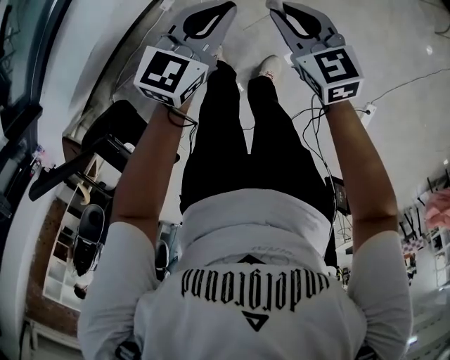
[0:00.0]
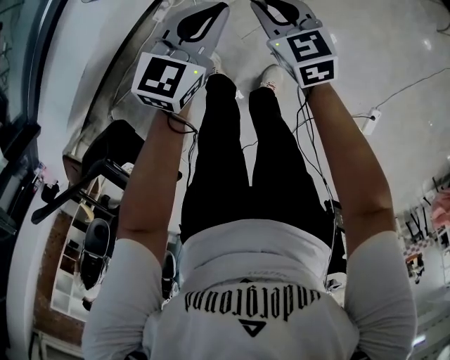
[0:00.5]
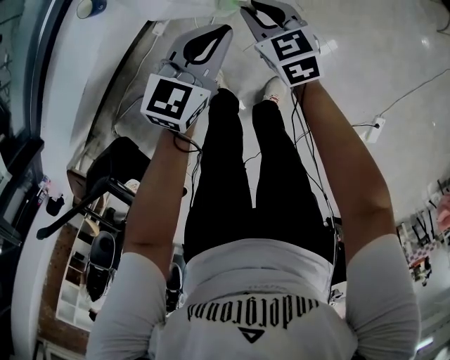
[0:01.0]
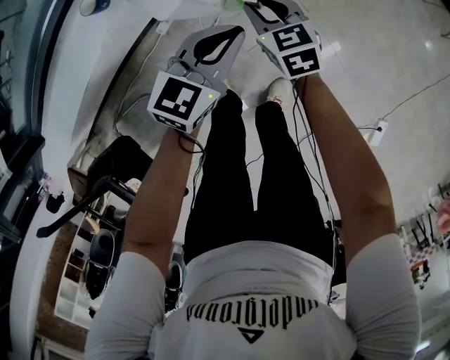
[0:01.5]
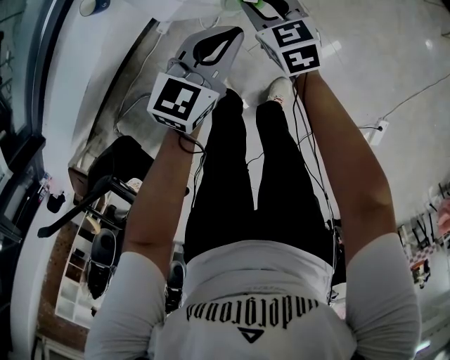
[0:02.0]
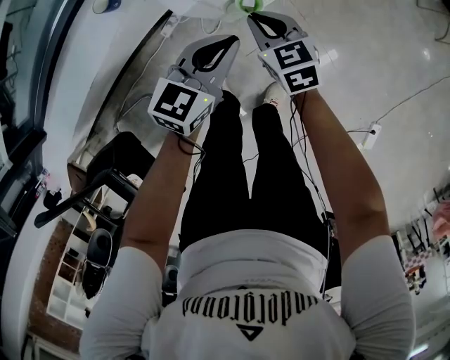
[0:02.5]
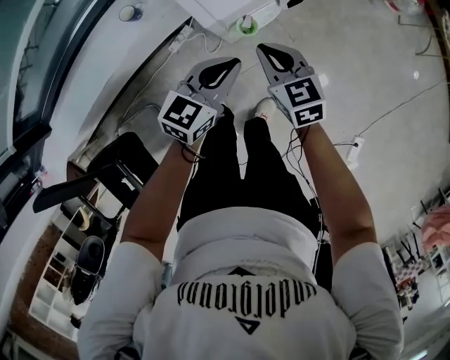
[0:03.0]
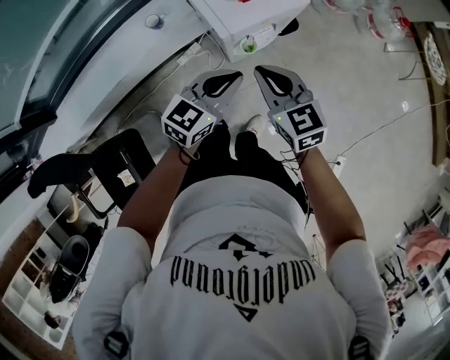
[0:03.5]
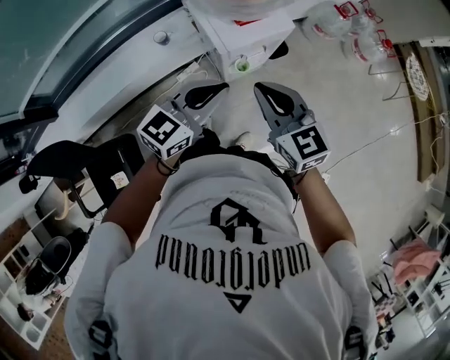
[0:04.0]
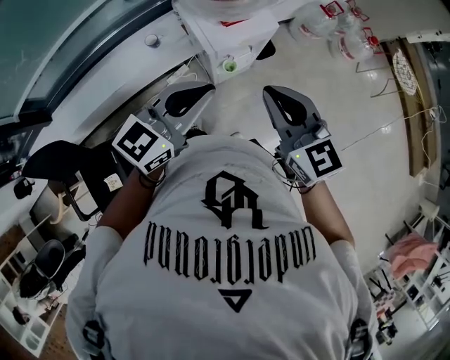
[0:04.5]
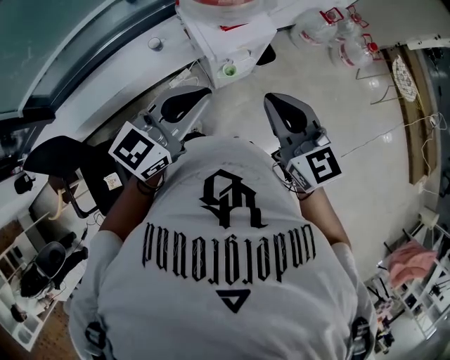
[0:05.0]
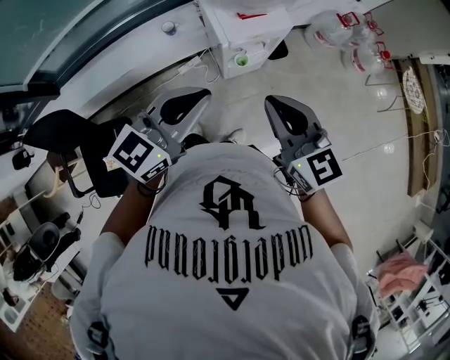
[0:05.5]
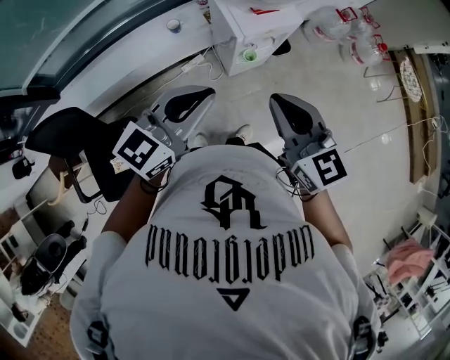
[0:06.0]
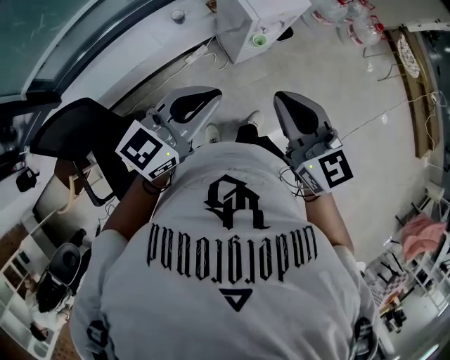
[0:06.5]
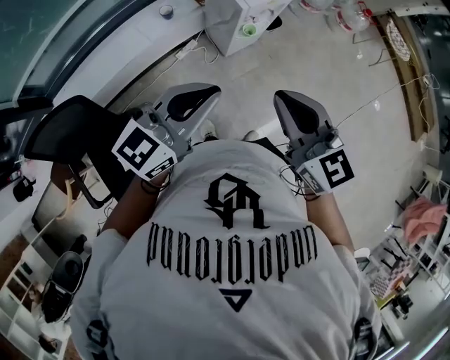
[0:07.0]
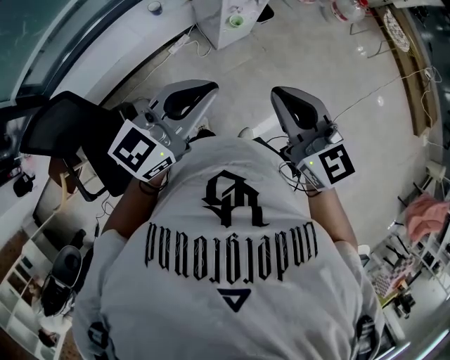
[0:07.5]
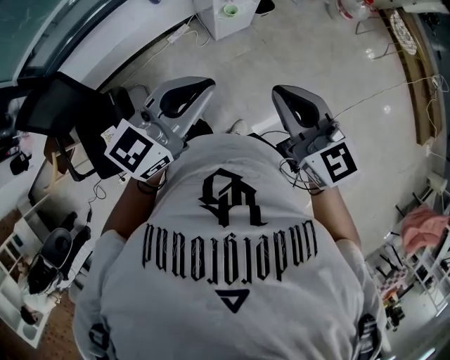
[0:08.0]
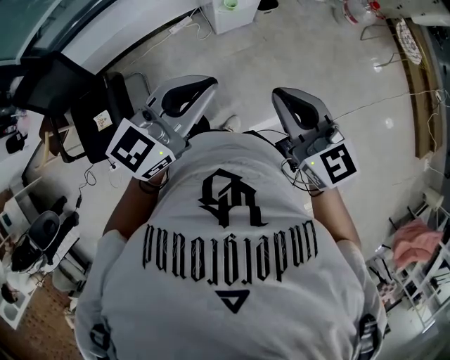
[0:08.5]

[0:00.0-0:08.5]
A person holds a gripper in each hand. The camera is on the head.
0:00.0 to 0:02.0: The right gripper moves downward and forward, about 20 cm. The left gripper shifts about 10 cm downward.
0:02.0 to 0:04.0: The grippers both shift upward by roughly 50 cm. The right gripper turns by approximately 20 degrees, and closes.
0:04.0 to 0:06.5: The grippers both shift backward, to the left and upward by some 30 cm.
0:06.5 to 0:08.5: Both grippers travel together to the right and backward, about 30 cm.

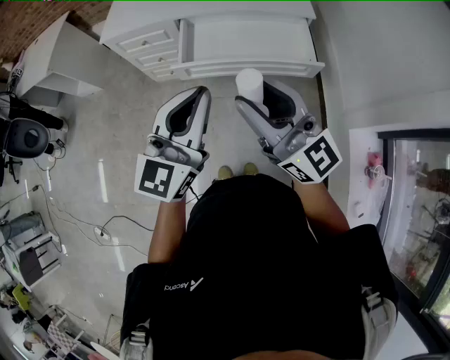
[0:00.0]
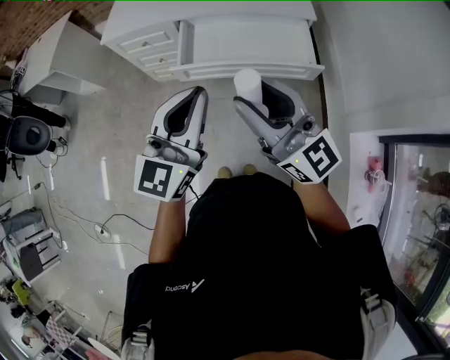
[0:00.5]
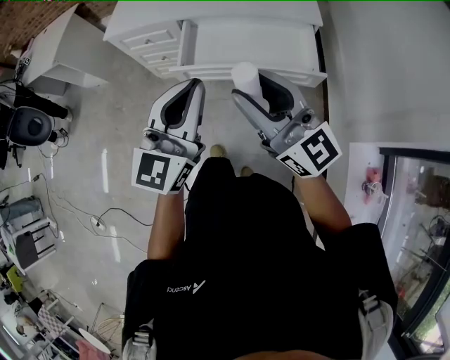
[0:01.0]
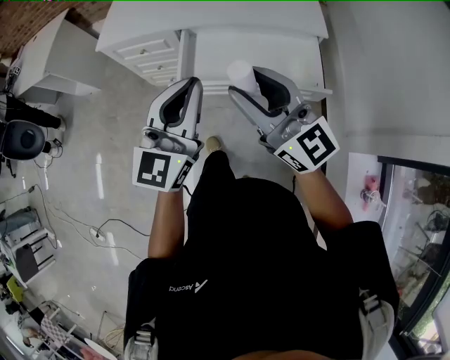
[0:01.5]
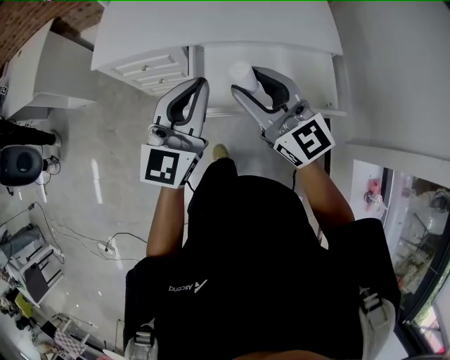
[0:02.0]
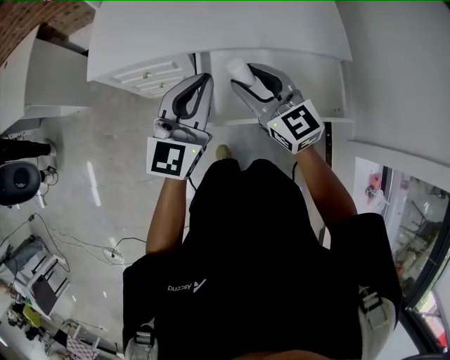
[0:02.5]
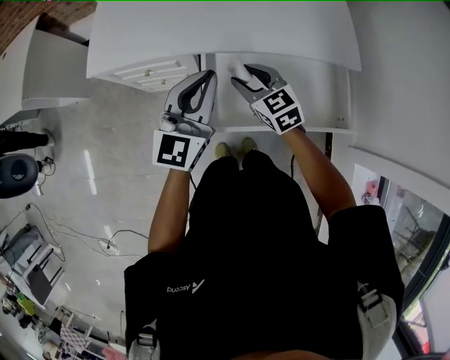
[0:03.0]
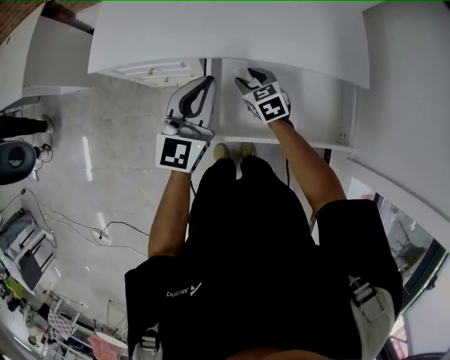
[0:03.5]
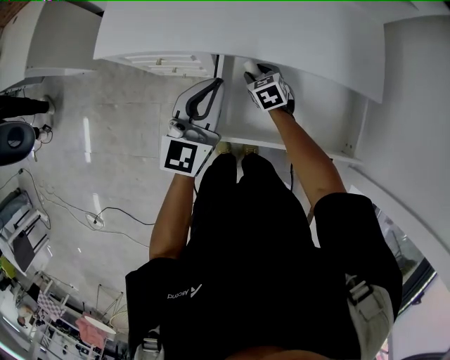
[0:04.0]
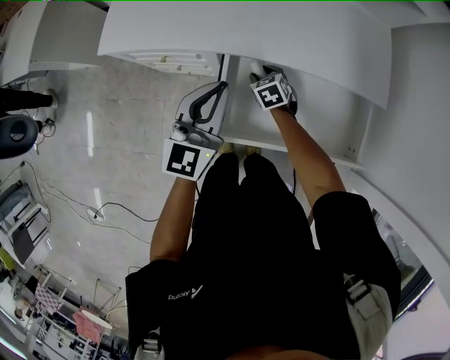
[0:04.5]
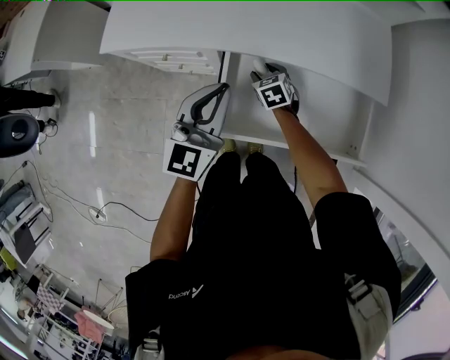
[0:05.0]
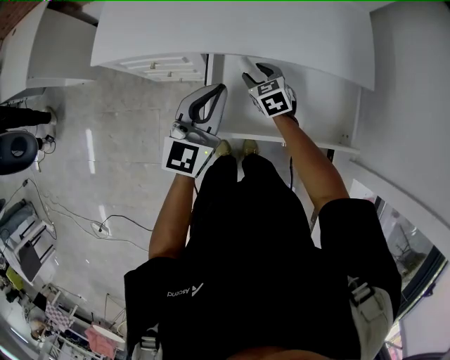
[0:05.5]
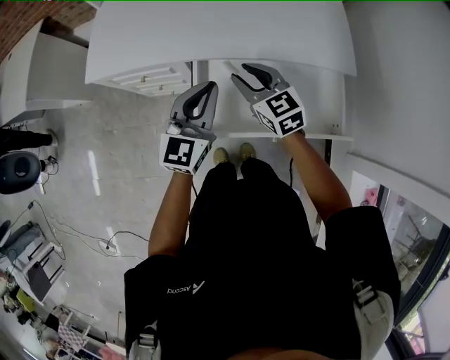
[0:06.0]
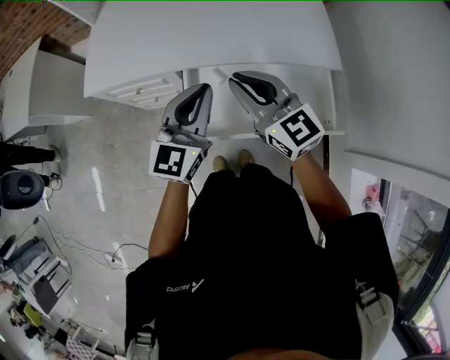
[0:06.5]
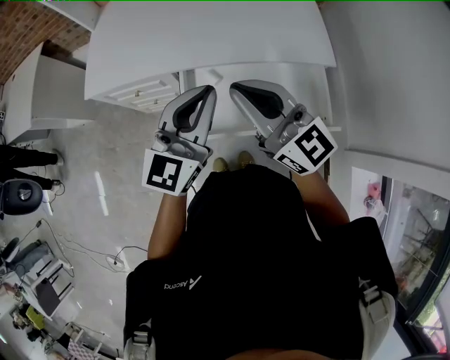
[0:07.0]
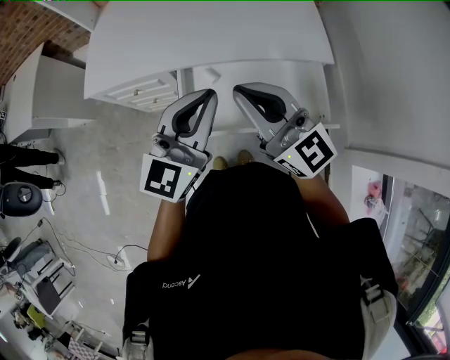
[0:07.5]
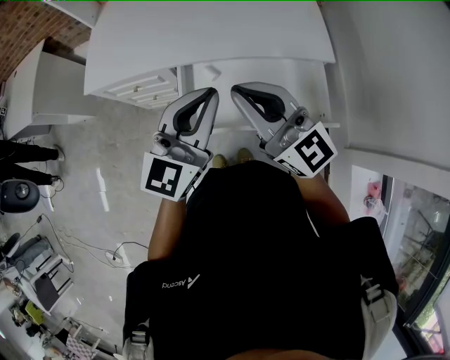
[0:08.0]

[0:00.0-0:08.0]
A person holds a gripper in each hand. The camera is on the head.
0:00.0 to 0:02.0: The two grippers go approximately 30 cm forward.
0:02.0 to 0:04.0: The left gripper goes roughly 20 cm forward and downward. The right gripper travels downward and forward by approximately 40 cm, and tilts its fingers approximately 60 degrees downward.
0:04.0 to 0:06.0: The left gripper shifts roughly 5 cm to the right; the right gripper shifts some 20 cm upward, and angles its fingers upward, by approximately 30 degrees.
0:06.0 to 0:08.0: The left gripper is displaced upward, backward and to the right by roughly 15 cm. The right gripper shifts about 25 cm upward and backward, tips its fingers upward by approximately 30 degrees, and closes.

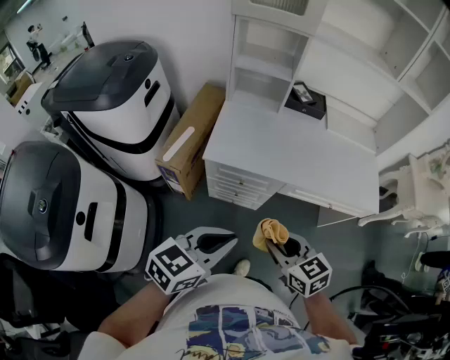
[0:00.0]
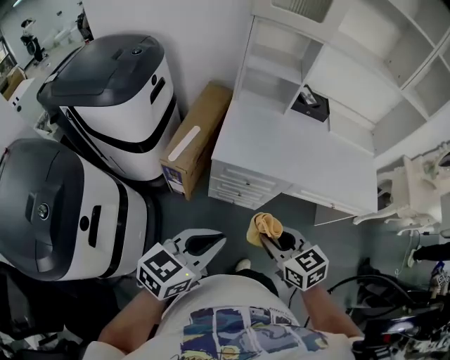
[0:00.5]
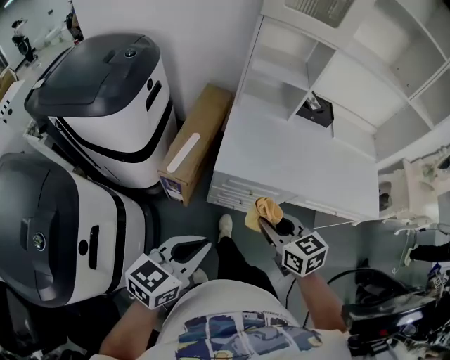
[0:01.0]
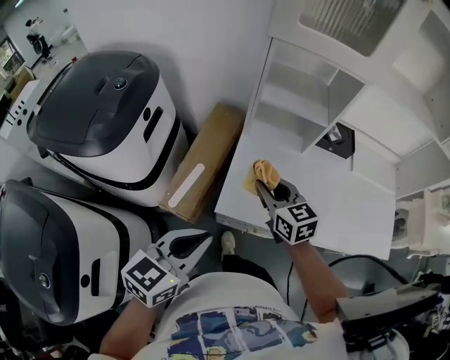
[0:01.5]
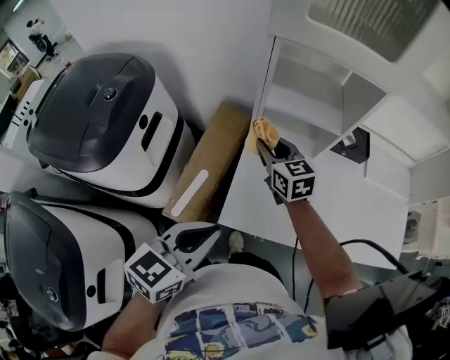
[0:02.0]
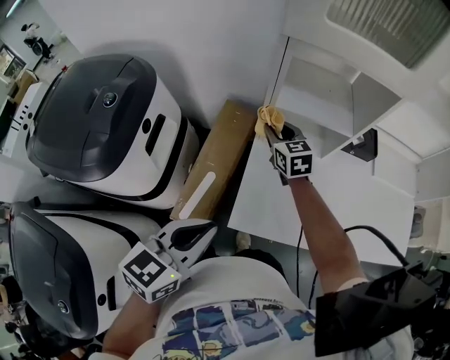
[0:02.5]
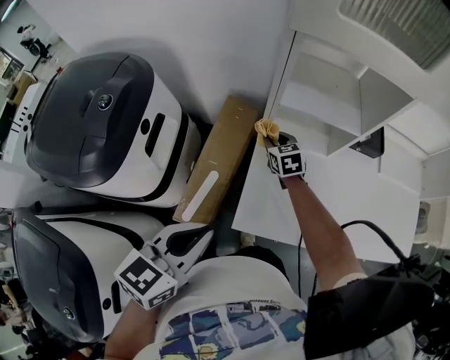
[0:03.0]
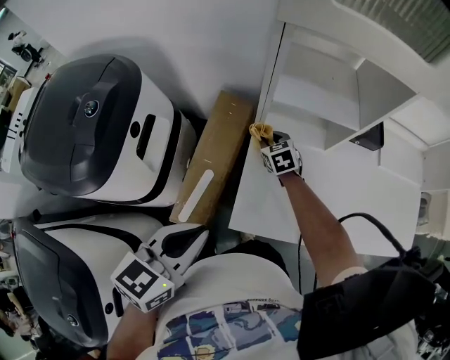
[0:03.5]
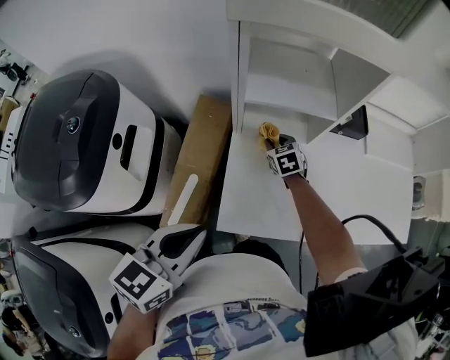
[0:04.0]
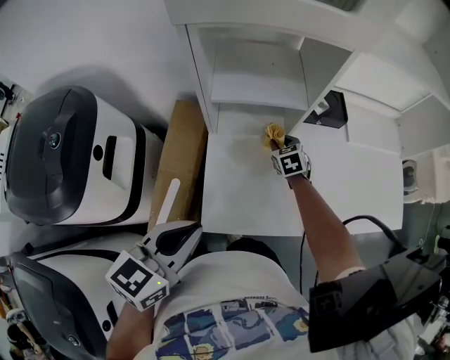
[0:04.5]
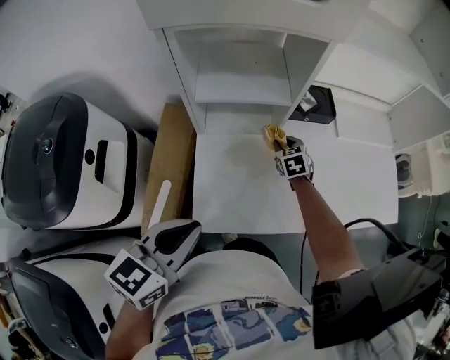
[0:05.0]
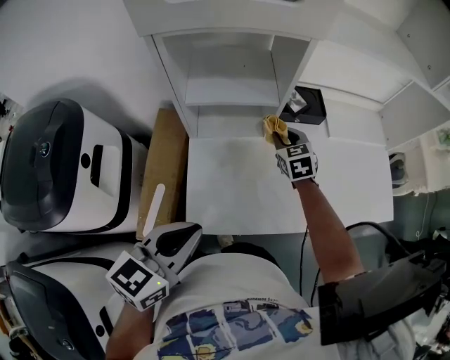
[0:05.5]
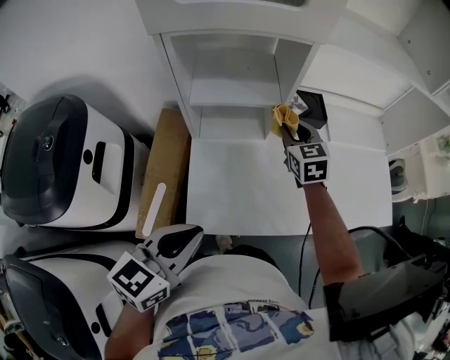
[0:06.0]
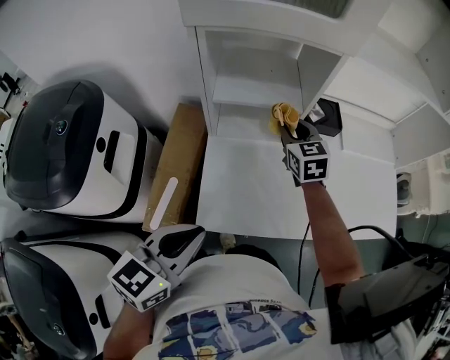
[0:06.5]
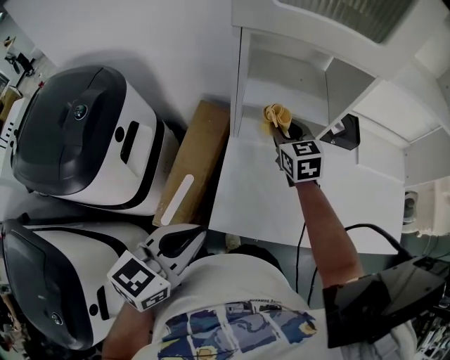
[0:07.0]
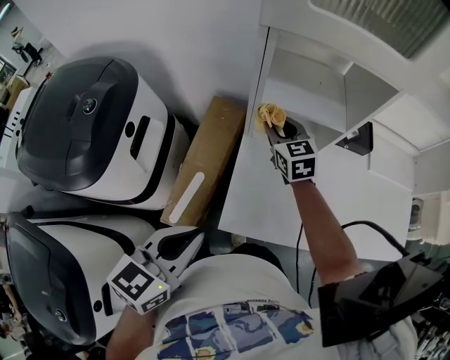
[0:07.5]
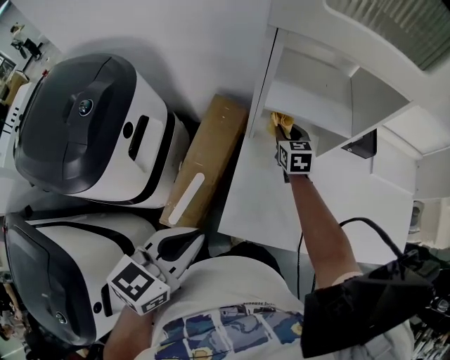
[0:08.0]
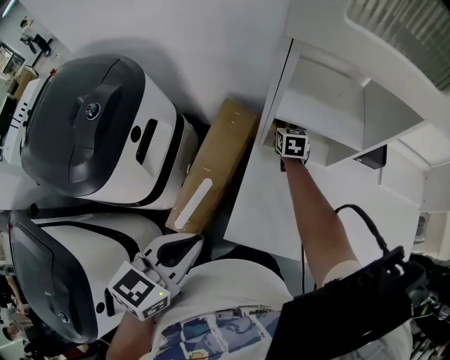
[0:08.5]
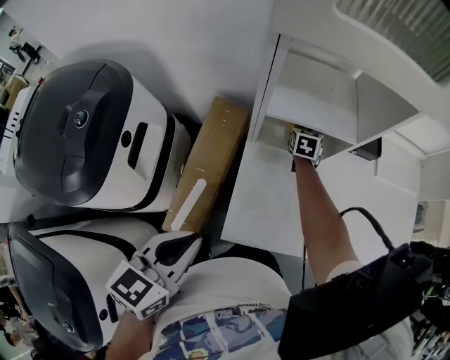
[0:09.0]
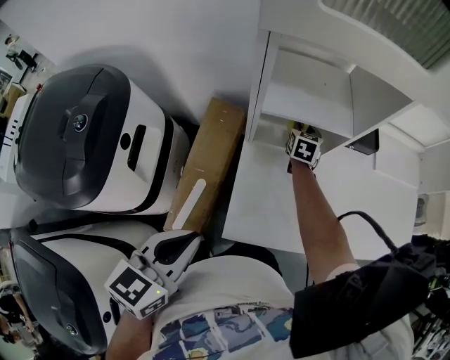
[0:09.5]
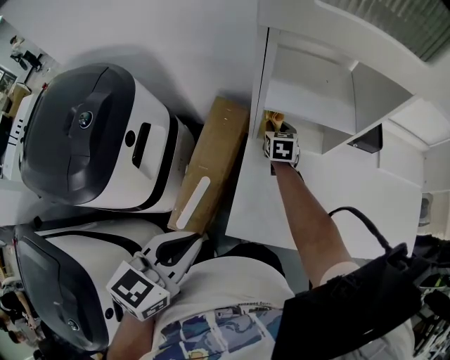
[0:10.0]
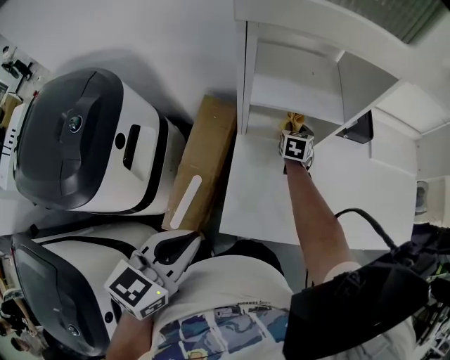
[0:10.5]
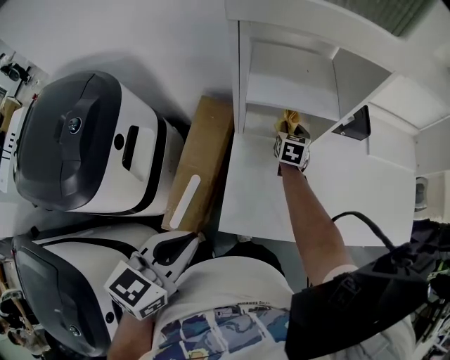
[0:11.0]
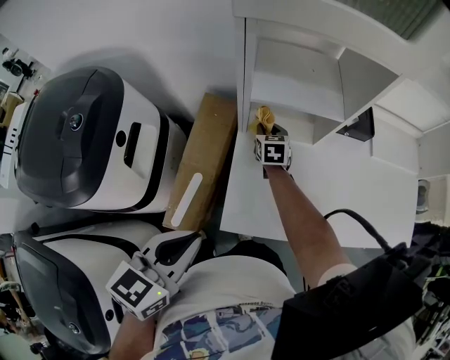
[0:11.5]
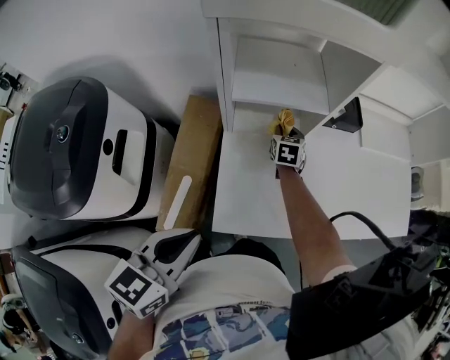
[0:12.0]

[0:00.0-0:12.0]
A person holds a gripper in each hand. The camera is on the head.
0:00.0 to 0:02.0: The right gripper moves forward, approximately 50 cm. The left gripper travels forward and to the left by approximately 35 cm.
0:02.0 to 0:04.0: The left gripper moves approximately 5 cm; the right gripper shifts approximately 20 cm downward and to the right, and swivels roughly 30 degrees.
0:04.0 to 0:06.0: The left gripper moves to the right, some 10 cm; the right gripper is displaced upward and to the right by approximately 25 cm, and rotates about 20 degrees.
0:06.0 to 0:08.0: The left gripper shifts about 10 cm to the left. The right gripper heads to the left and downward, covering some 25 cm.
0:08.0 to 0:10.0: The right gripper swings left and right, about 10 cm each way, with 2 reversals.
0:10.0 to 0:12.0: The right gripper goes left and right, some 15 cm each way, reversing 2 times.
